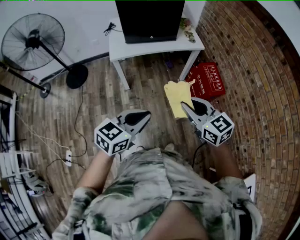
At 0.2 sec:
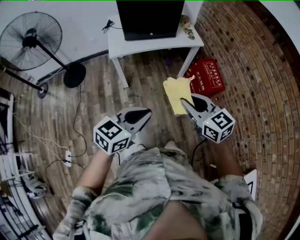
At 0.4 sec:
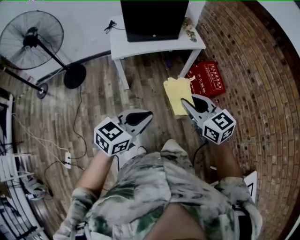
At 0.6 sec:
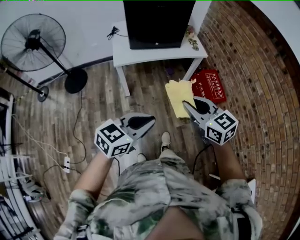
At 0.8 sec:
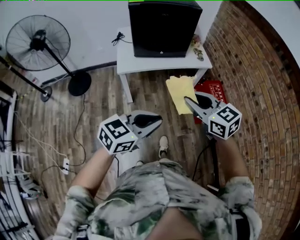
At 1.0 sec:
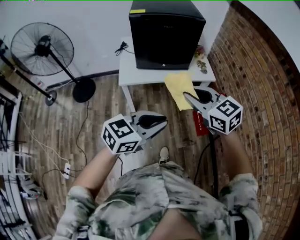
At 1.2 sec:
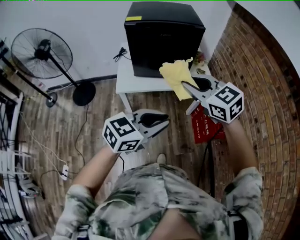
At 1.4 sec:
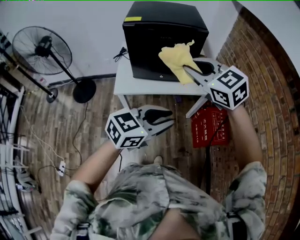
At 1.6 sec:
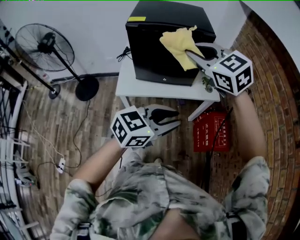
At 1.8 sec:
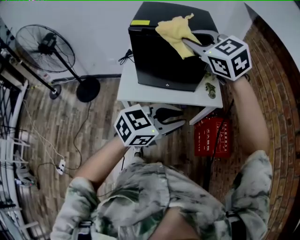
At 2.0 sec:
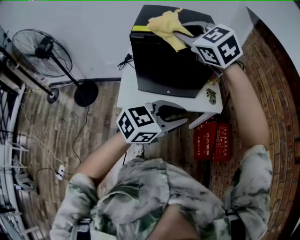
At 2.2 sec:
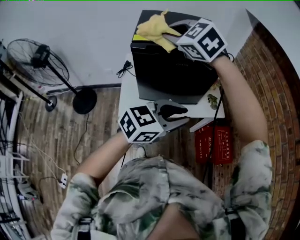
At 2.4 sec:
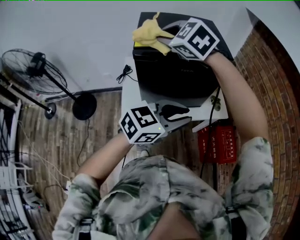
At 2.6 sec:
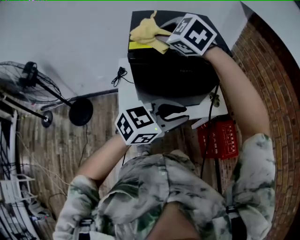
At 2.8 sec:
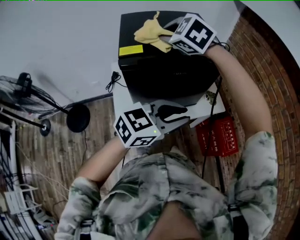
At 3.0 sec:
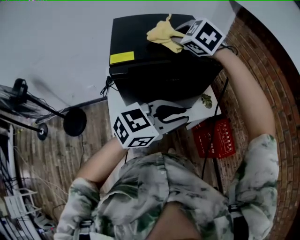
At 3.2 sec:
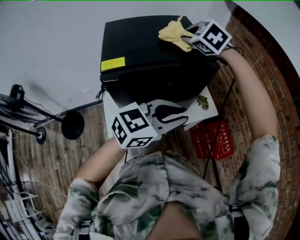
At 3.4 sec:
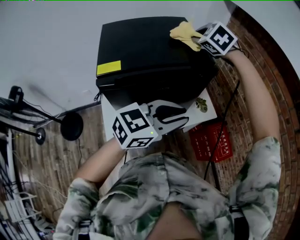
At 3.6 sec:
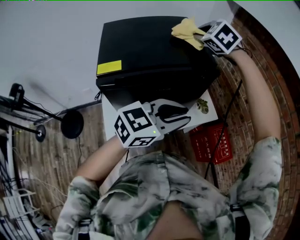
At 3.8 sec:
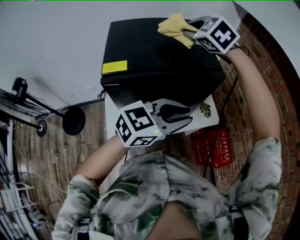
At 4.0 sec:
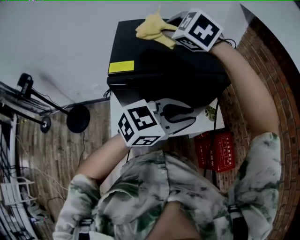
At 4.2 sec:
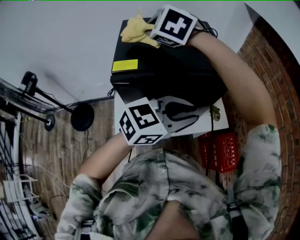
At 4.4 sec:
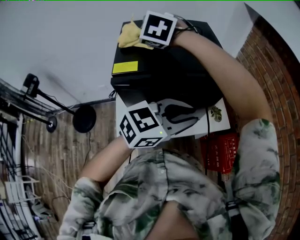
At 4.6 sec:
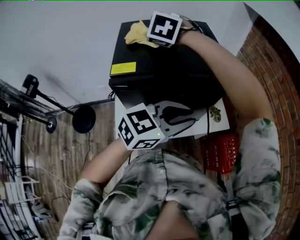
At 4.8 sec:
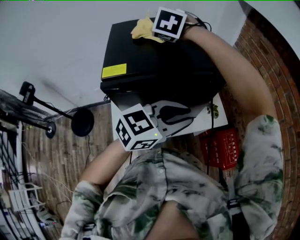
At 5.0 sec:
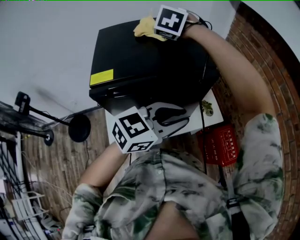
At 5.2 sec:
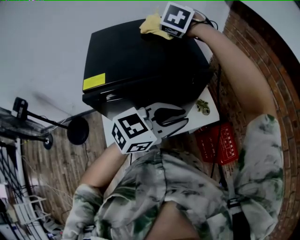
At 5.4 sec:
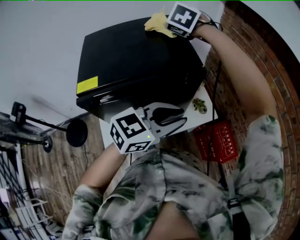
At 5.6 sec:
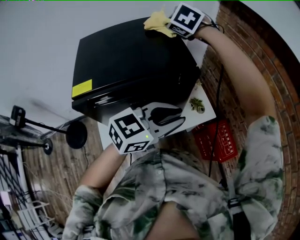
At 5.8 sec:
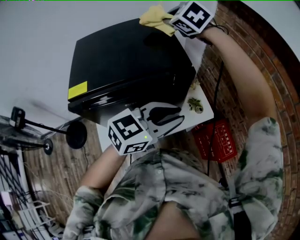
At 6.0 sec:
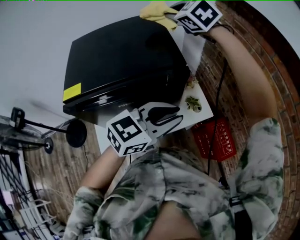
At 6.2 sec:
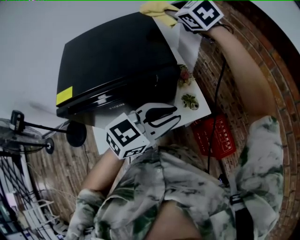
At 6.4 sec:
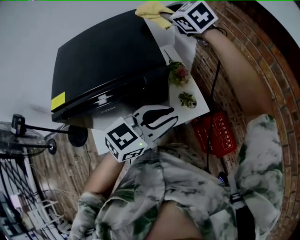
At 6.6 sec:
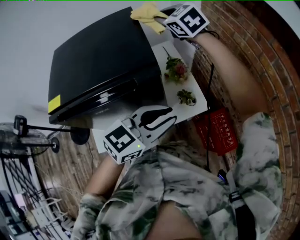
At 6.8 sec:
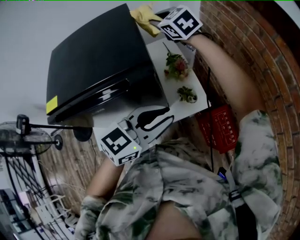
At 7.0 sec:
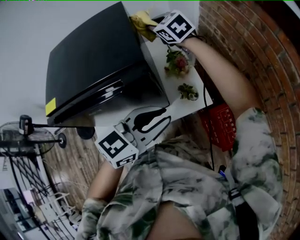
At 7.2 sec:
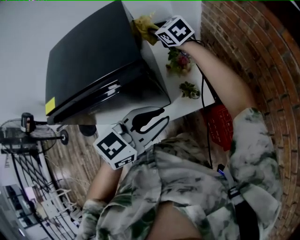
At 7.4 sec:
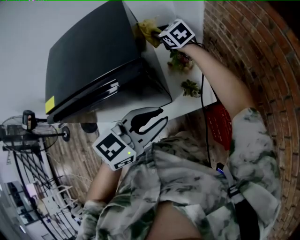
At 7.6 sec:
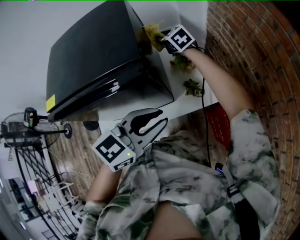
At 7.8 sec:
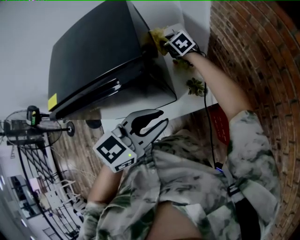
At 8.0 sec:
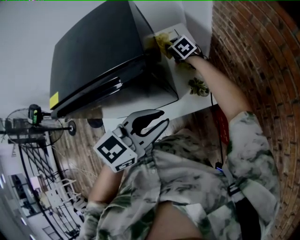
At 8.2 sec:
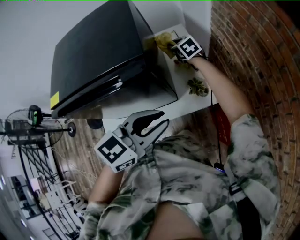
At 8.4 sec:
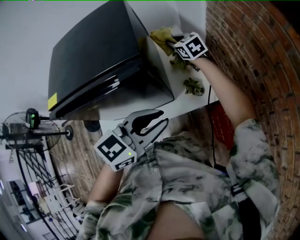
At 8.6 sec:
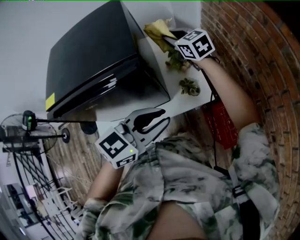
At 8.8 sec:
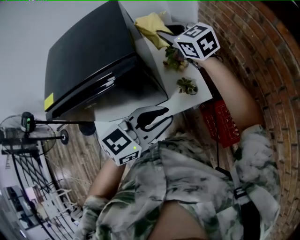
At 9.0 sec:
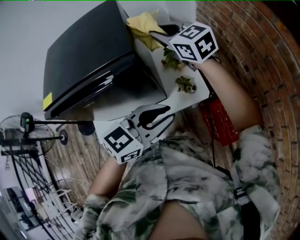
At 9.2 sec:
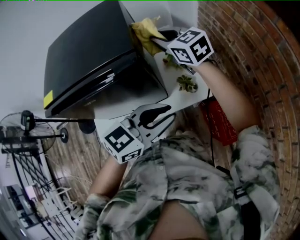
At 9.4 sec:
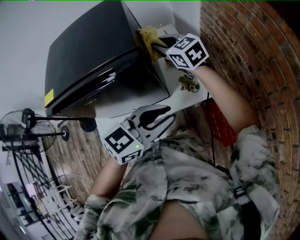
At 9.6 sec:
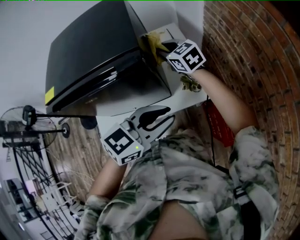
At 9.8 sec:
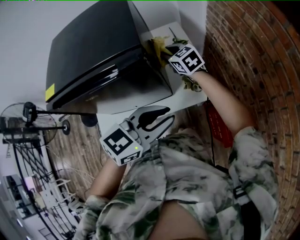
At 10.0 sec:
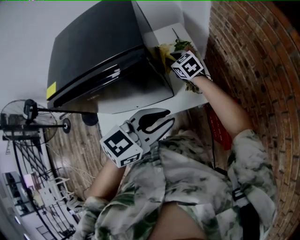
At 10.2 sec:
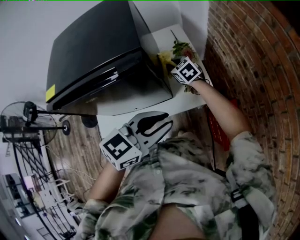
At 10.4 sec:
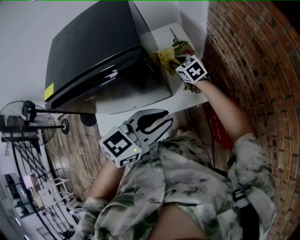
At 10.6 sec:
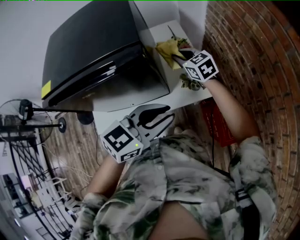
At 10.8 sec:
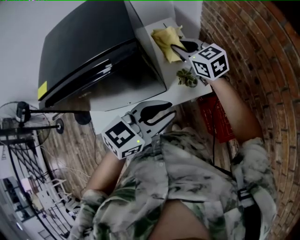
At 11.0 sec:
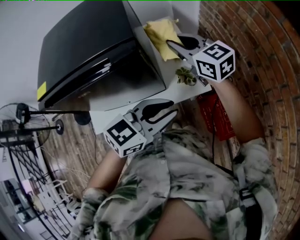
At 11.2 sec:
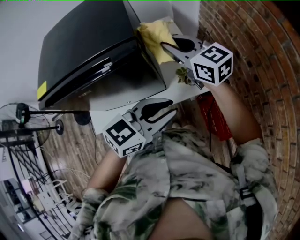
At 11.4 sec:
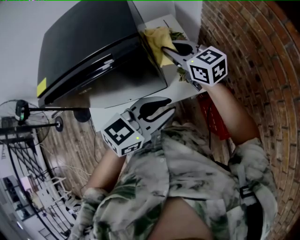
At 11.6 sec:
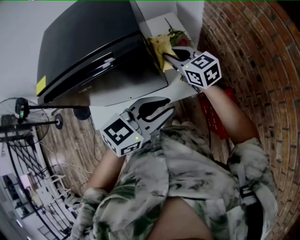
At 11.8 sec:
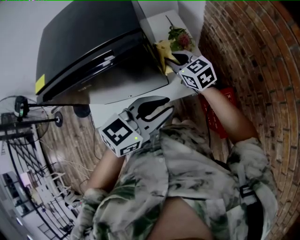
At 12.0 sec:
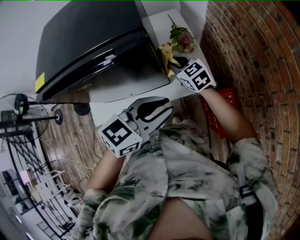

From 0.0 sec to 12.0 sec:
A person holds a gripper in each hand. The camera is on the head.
From 0.0 sec to 1.6 sec: The right gripper goes roughly 50 cm forward and upward, and rotates approximately 30 degrees. The left gripper travels forward by about 30 cm.
From 1.6 sec to 3.0 sec: Both grippers move forward and to the left, approximately 25 cm. The right gripper changes its angle by approximately 30 degrees.
From 3.0 sec to 4.4 sec: The right gripper shifts roughly 15 cm to the left. The left gripper travels forward by approximately 5 cm.
From 4.4 sec to 6.0 sec: The left gripper travels to the right and forward by some 10 cm; the right gripper shifts some 30 cm to the right and forward, and turns by some 30 degrees.
From 6.0 sec to 7.6 sec: The left gripper heads downward, covering about 5 cm. Meanwhile the right gripper moves downward, some 30 cm, and turns by about 30 degrees.
From 7.6 sec to 9.0 sec: The right gripper goes approximately 20 cm upward and backward.
From 9.0 sec to 10.4 sec: The right gripper is displaced downward by roughly 25 cm, and turns by some 20 degrees.
From 10.4 sec to 12.0 sec: The right gripper travels backward by approximately 10 cm, and moves about 20 cm upward and comes back.

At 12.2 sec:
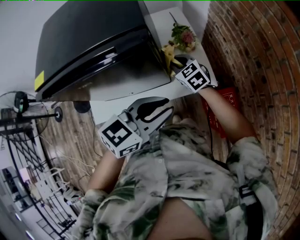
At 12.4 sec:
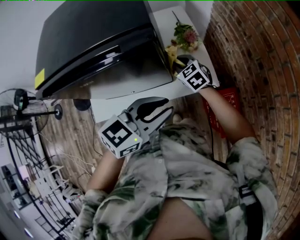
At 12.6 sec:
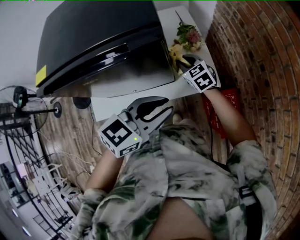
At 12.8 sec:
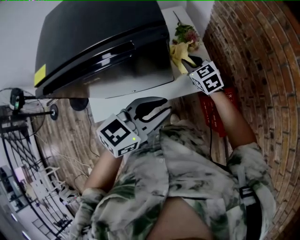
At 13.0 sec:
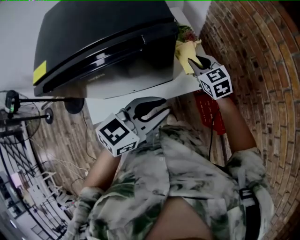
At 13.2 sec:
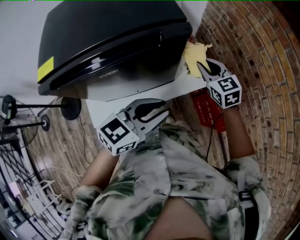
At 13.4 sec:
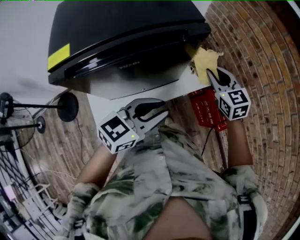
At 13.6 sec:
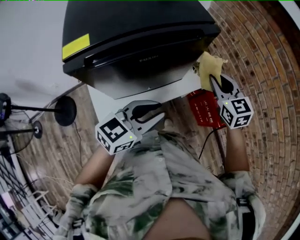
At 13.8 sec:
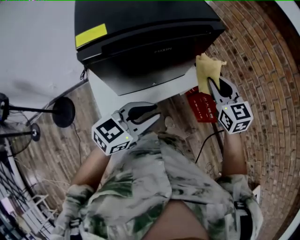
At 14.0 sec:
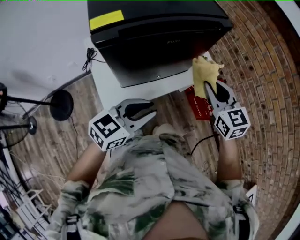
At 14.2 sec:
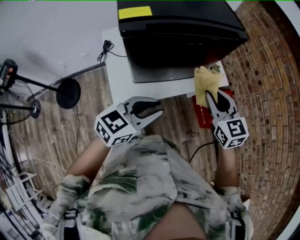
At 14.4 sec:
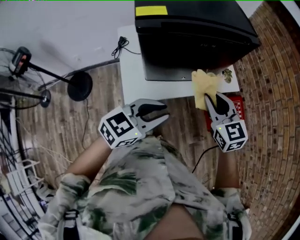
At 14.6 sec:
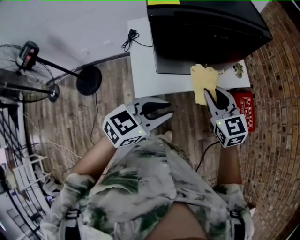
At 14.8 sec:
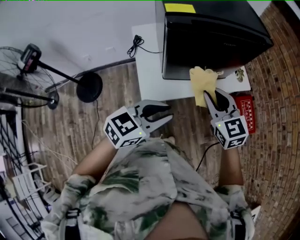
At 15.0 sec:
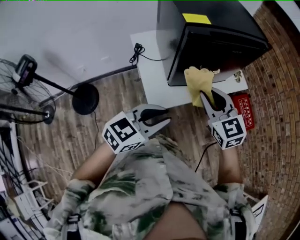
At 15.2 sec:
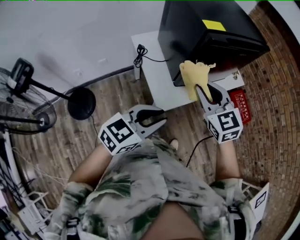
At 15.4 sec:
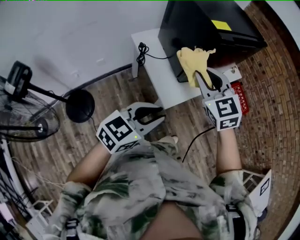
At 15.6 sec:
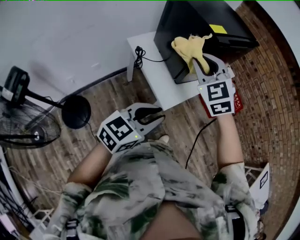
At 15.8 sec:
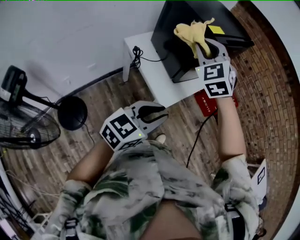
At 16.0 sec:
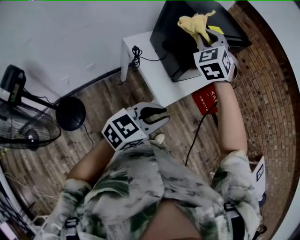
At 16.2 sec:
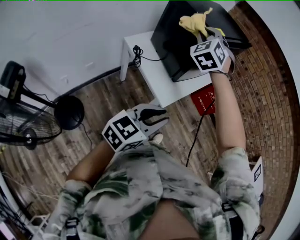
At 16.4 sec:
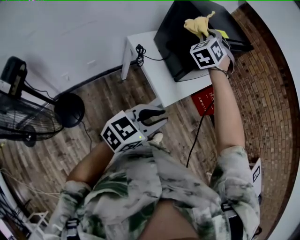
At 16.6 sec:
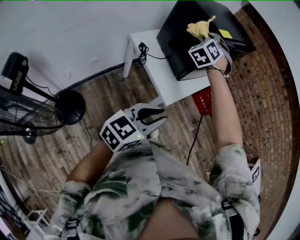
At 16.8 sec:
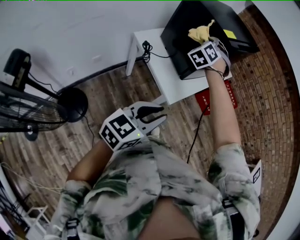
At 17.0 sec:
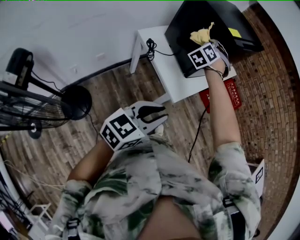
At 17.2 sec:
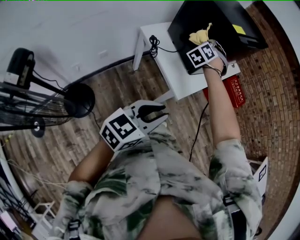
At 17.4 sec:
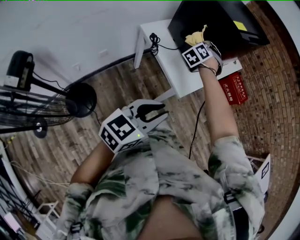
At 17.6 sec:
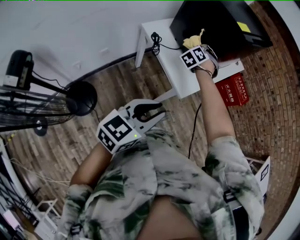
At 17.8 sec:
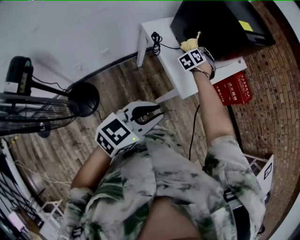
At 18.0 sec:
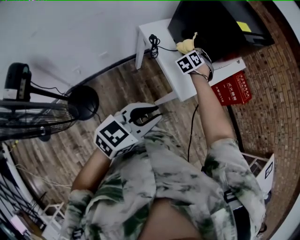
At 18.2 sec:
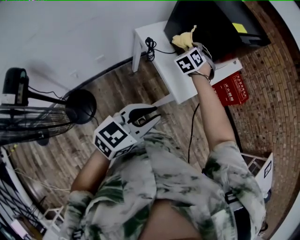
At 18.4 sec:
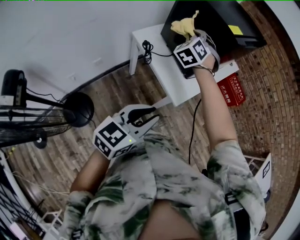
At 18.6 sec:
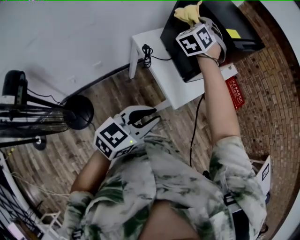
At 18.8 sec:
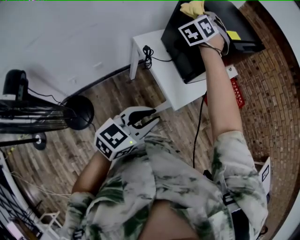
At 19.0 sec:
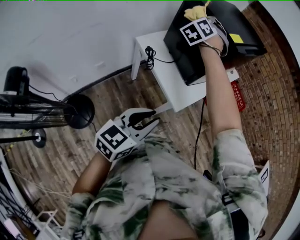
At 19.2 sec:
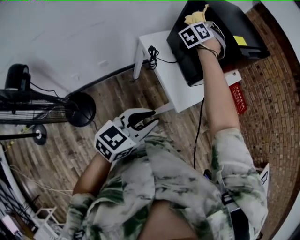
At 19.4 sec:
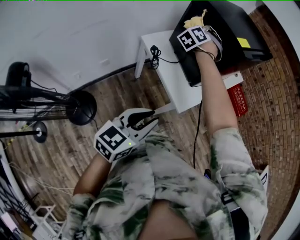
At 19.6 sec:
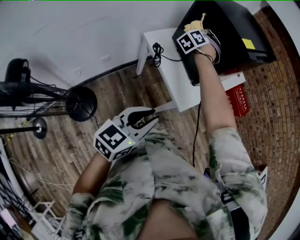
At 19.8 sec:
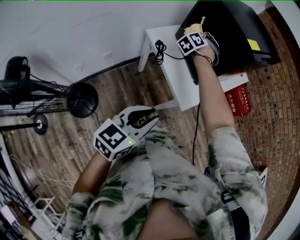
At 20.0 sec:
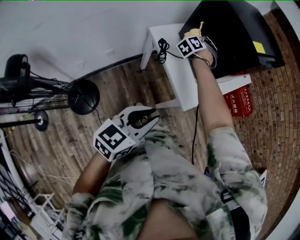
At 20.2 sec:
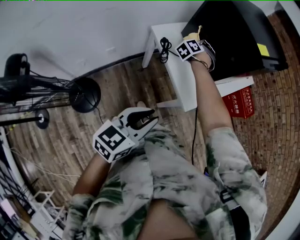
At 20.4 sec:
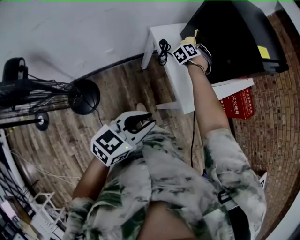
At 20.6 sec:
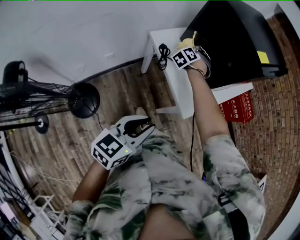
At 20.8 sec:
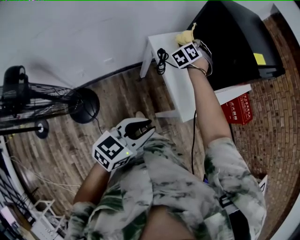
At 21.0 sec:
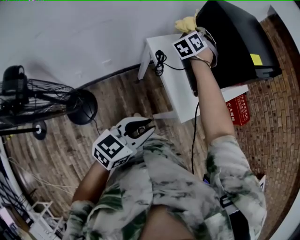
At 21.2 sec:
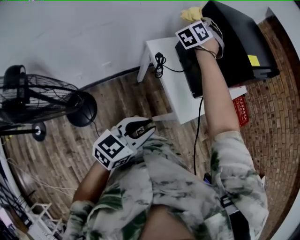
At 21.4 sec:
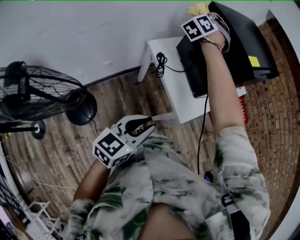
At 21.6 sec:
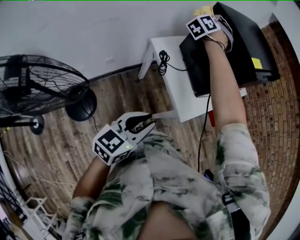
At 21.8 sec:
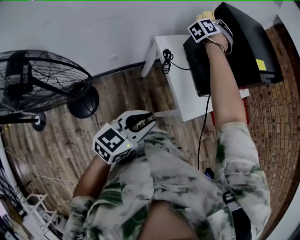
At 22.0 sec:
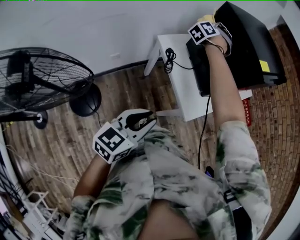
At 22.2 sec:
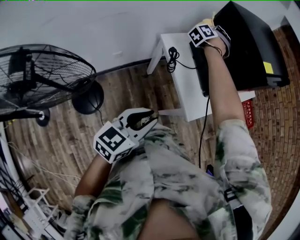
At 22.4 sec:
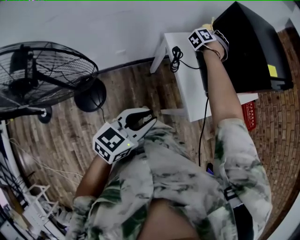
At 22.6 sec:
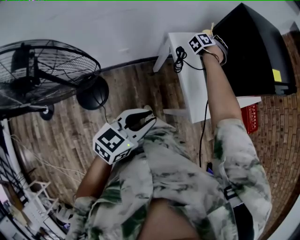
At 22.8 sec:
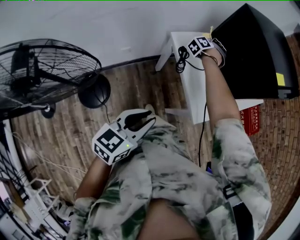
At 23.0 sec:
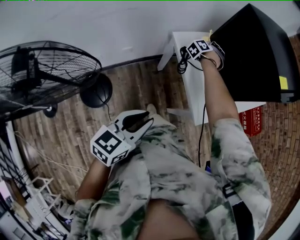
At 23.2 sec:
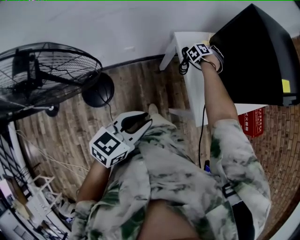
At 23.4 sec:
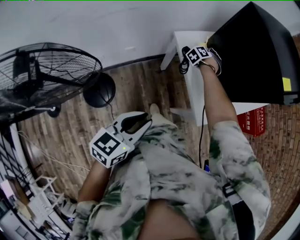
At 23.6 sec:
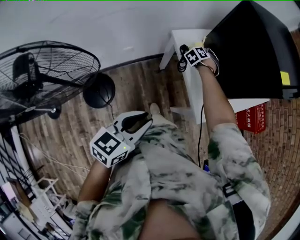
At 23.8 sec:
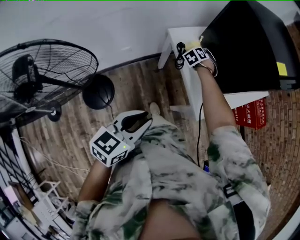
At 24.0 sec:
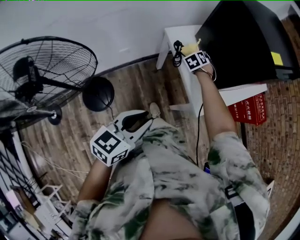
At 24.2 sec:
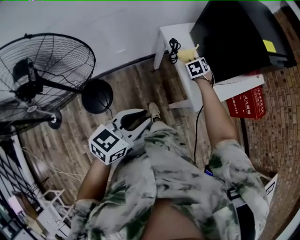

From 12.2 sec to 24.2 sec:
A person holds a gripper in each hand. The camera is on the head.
From 12.2 sec to 13.8 sec: The right gripper shifts some 30 cm backward and upward, and changes its angle by some 30 degrees. Meanwhile the left gripper goes roughly 25 cm to the left and backward.
From 13.8 sec to 15.2 sec: Both grippers move to the left and backward, about 35 cm.
From 15.2 sec to 16.6 sec: The left gripper shifts by roughly 15 cm. The right gripper shifts by about 20 cm, and changes its angle by approximately 60 degrees.
From 16.6 sec to 18.2 sec: The left gripper shifts some 5 cm to the left; the right gripper travels downward by roughly 15 cm.
From 18.2 sec to 19.8 sec: The right gripper heads to the left and forward, covering about 10 cm, and moves roughly 20 cm upward and comes back.
From 19.8 sec to 21.2 sec: The right gripper heads upward and to the left, covering approximately 15 cm.
From 21.2 sec to 22.6 sec: The right gripper moves downward, some 20 cm, and turns by some 30 degrees; the left gripper ends up approximately 5 cm from where it was.
From 22.6 sec to 24.2 sec: The right gripper moves backward, downward and to the right, some 20 cm, and turns by about 40 degrees.
